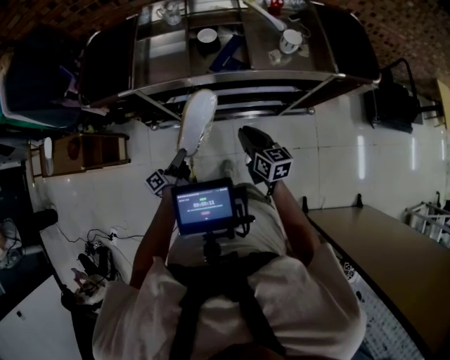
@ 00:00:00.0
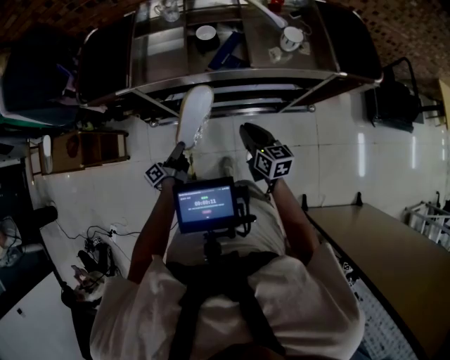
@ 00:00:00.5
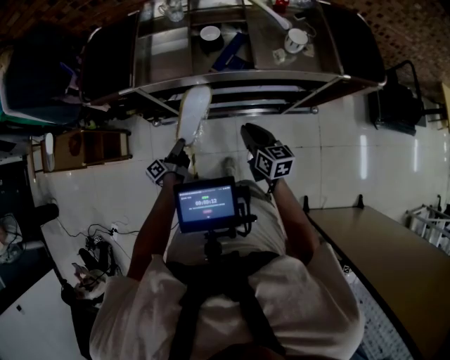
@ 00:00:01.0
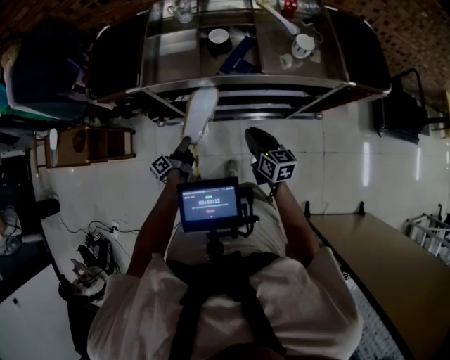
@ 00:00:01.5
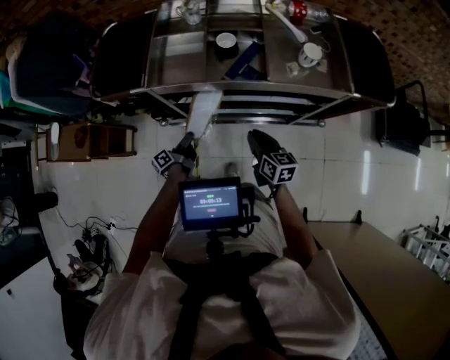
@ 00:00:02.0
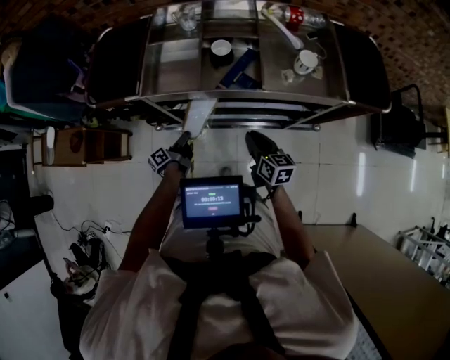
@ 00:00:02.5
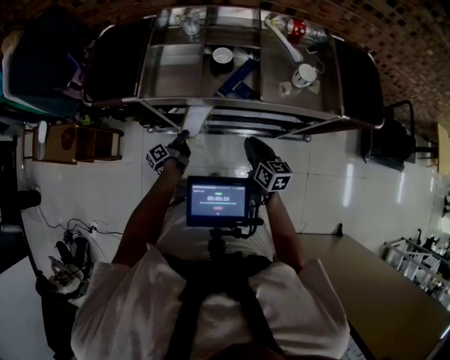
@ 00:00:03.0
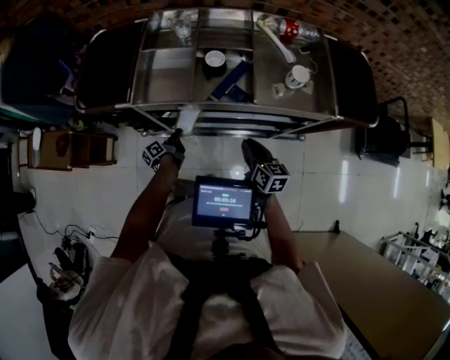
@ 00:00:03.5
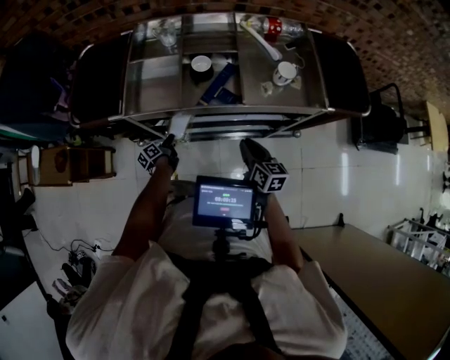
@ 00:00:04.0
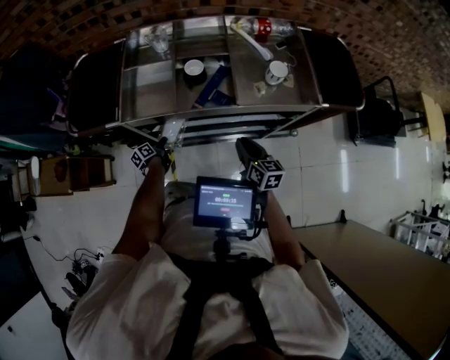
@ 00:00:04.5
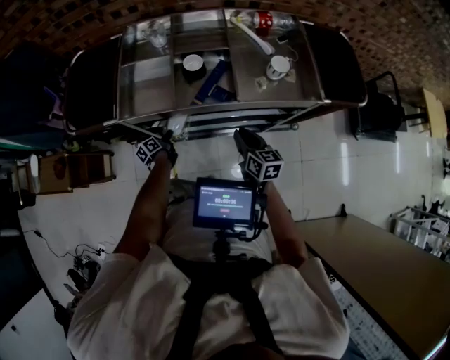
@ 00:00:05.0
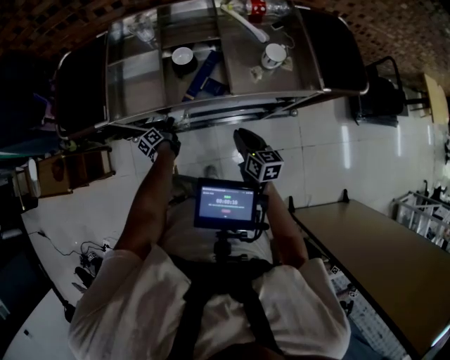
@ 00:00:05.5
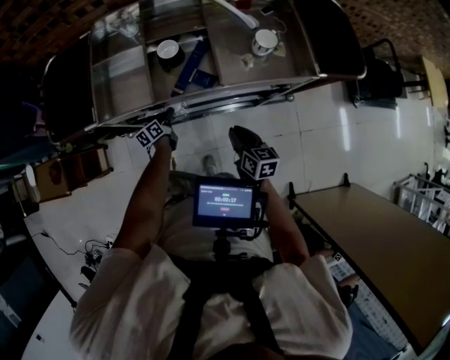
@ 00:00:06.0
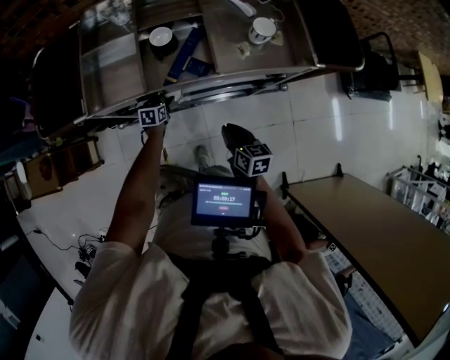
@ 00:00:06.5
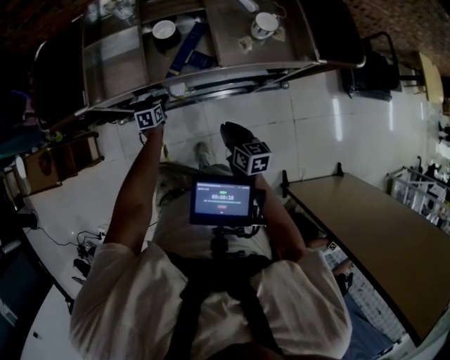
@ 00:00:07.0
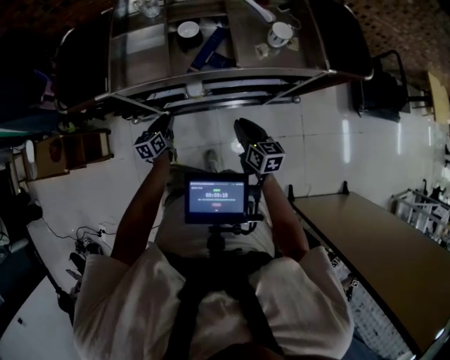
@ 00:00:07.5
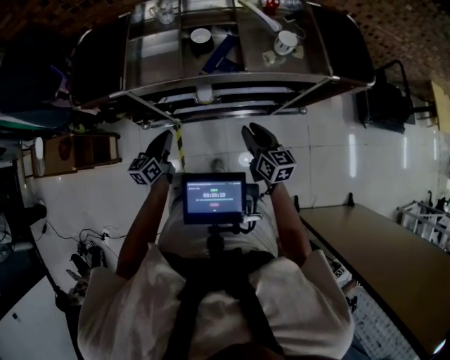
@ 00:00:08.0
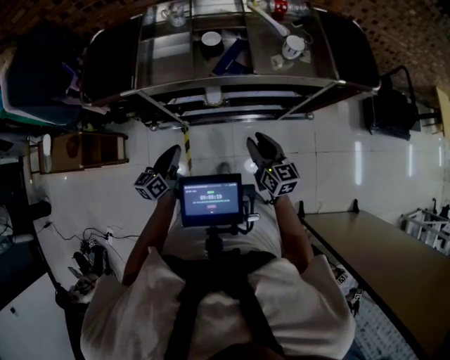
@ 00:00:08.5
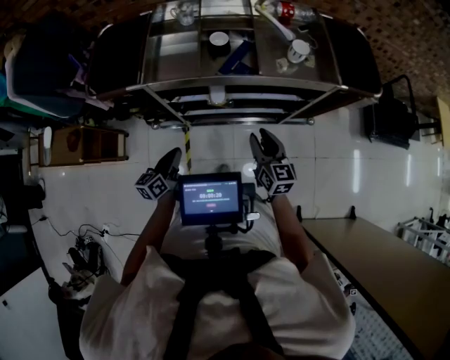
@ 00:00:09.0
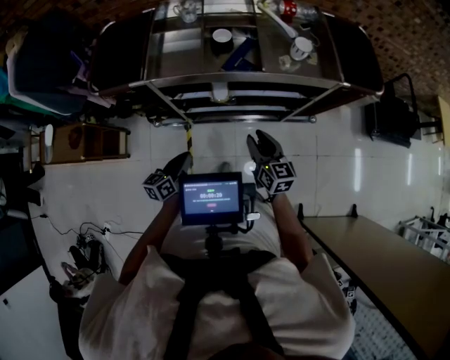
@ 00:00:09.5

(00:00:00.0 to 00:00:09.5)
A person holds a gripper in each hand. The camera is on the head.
00:00:02.0 - 00:00:04.0: The right gripper moves roughly 10 cm.
00:00:05.5 - 00:00:07.5: The right gripper ends up approximately 5 cm from where it was.
00:00:07.5 - 00:00:09.5: The right gripper moves upward, approximately 5 cm.

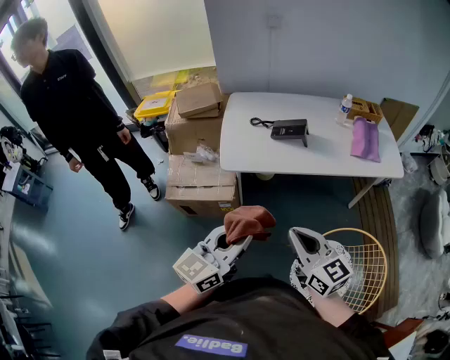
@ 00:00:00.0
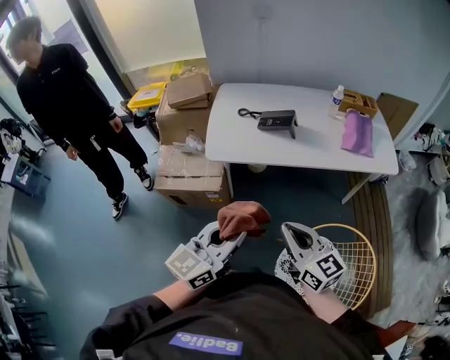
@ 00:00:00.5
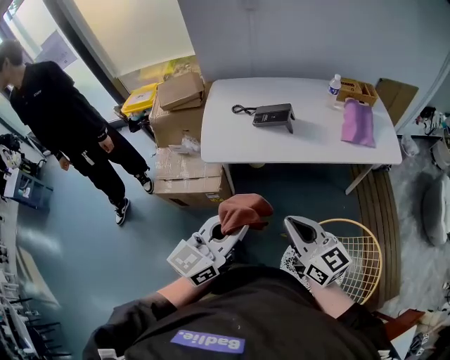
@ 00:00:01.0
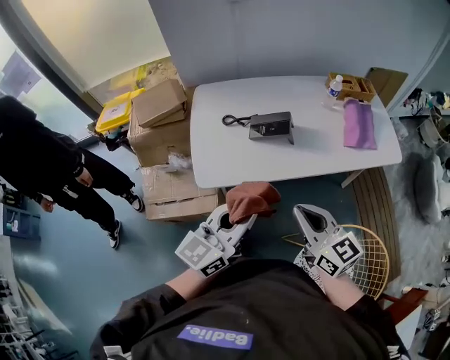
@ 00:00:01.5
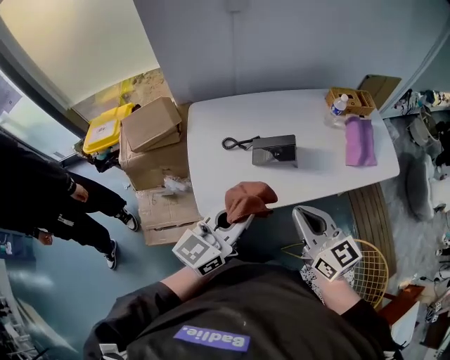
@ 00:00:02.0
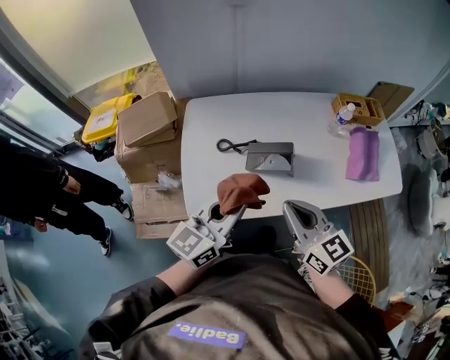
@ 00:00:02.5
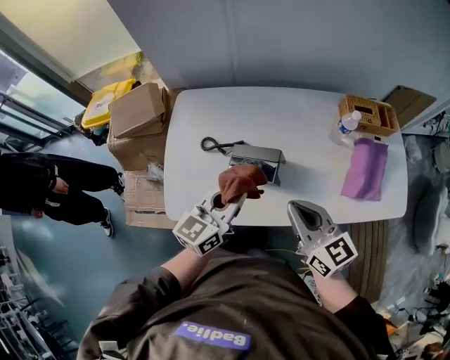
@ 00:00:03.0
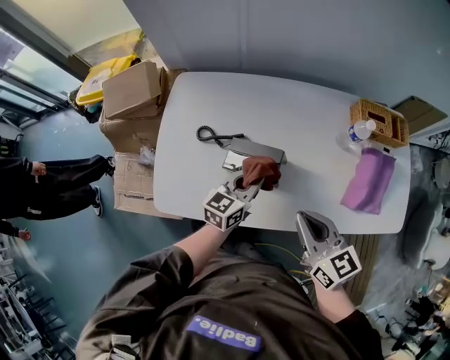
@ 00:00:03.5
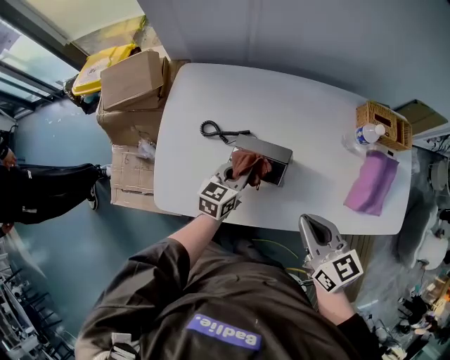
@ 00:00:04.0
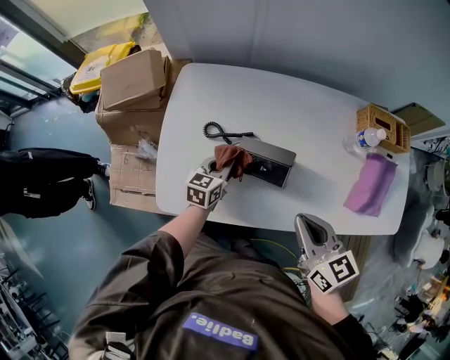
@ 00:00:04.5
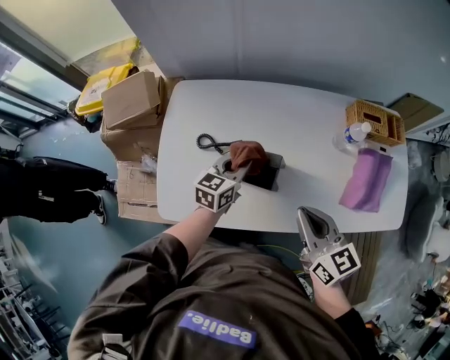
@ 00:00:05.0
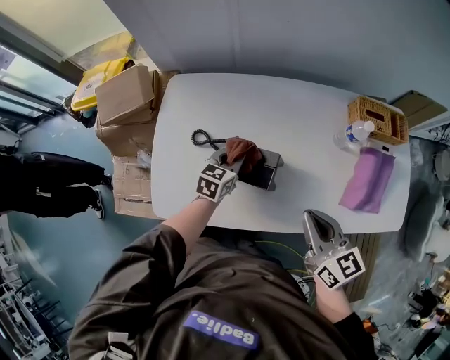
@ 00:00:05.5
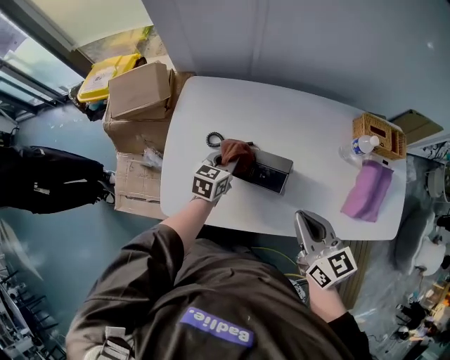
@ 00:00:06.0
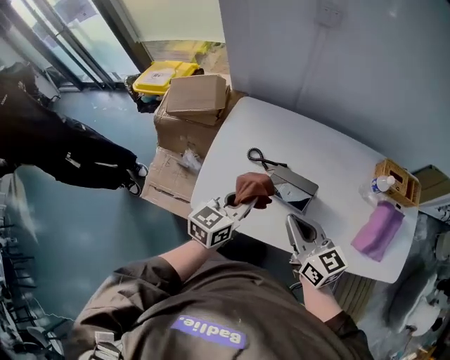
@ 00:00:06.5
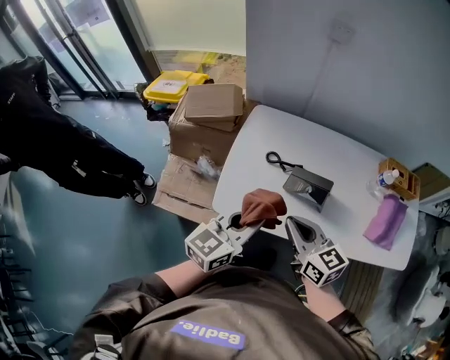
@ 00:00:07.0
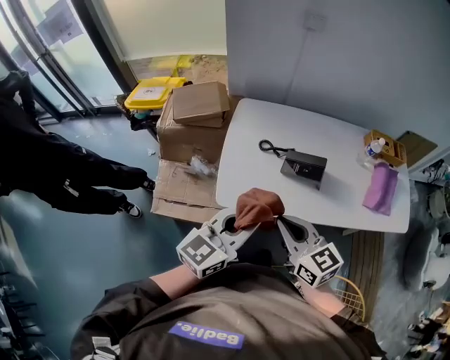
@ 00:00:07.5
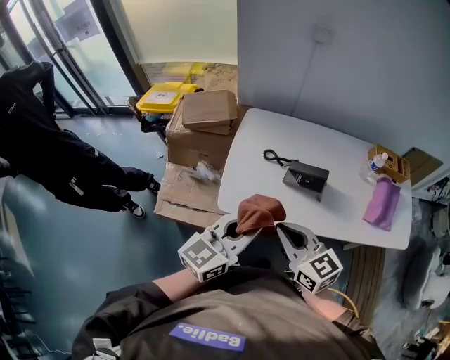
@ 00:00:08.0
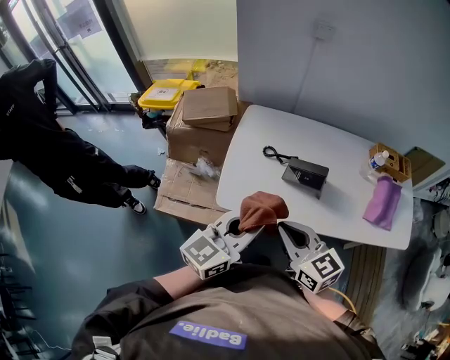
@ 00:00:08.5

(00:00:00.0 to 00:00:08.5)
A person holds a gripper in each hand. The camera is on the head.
00:00:00.0 - 00:00:02.0: The grippers both shift forward by some 30 cm.
00:00:02.0 - 00:00:04.0: The left gripper heads downward, forward and to the right, covering roughly 40 cm, and turns by some 30 degrees. Meanwhile the right gripper goes about 25 cm to the right, forward and downward.
00:00:04.0 - 00:00:06.5: The right gripper travels to the left by approximately 10 cm; the left gripper goes up and down, about 20 cm each way, reversing 2 times.
00:00:06.5 - 00:00:08.5: The right gripper moves backward and to the left, approximately 20 cm, while the left gripper shifts about 20 cm backward and upward.

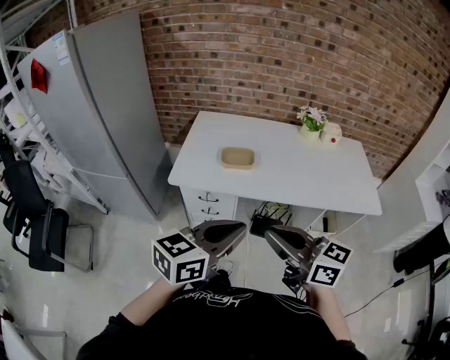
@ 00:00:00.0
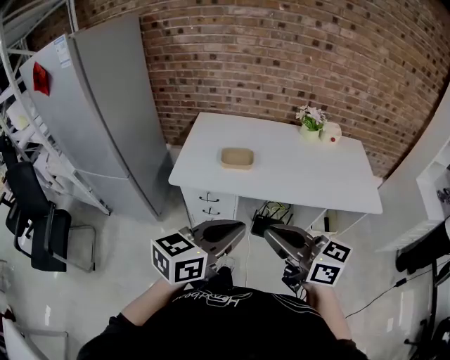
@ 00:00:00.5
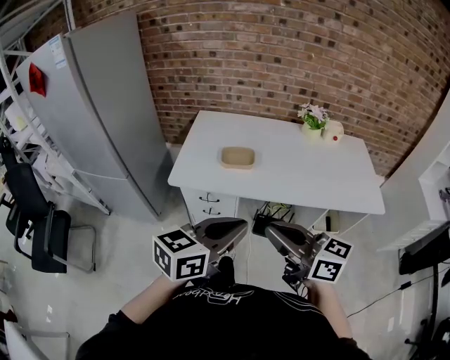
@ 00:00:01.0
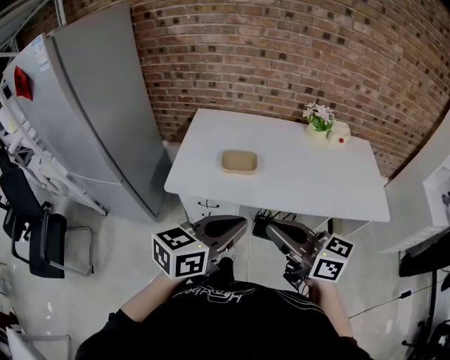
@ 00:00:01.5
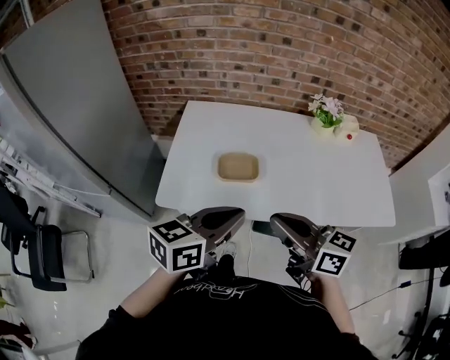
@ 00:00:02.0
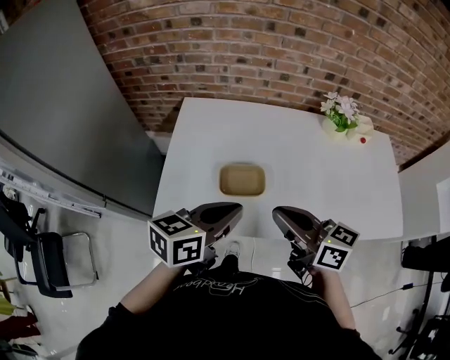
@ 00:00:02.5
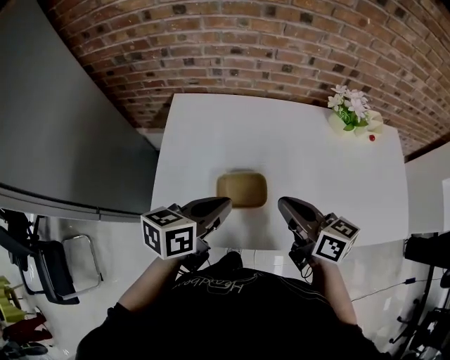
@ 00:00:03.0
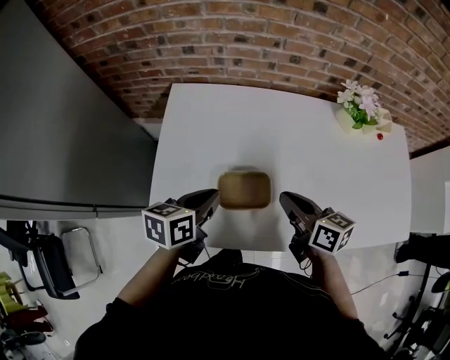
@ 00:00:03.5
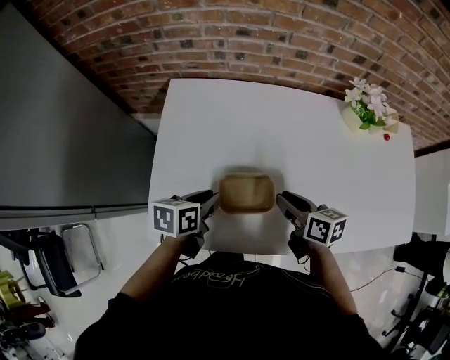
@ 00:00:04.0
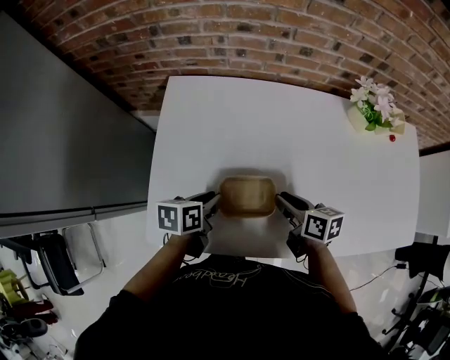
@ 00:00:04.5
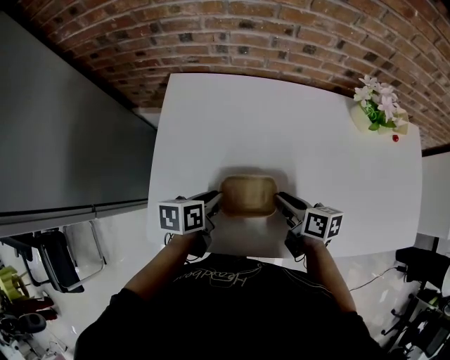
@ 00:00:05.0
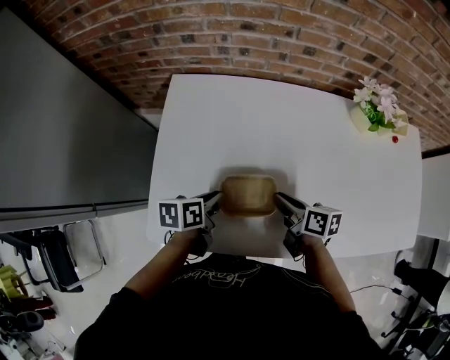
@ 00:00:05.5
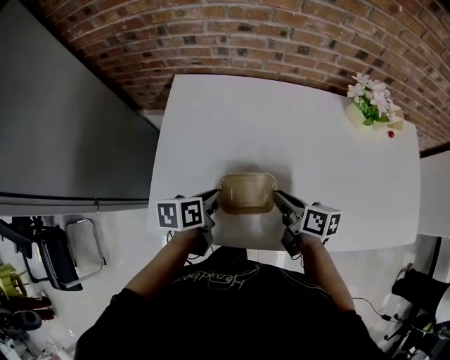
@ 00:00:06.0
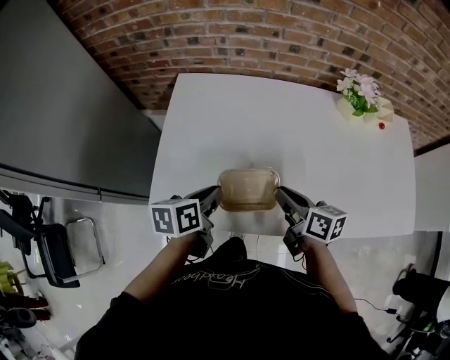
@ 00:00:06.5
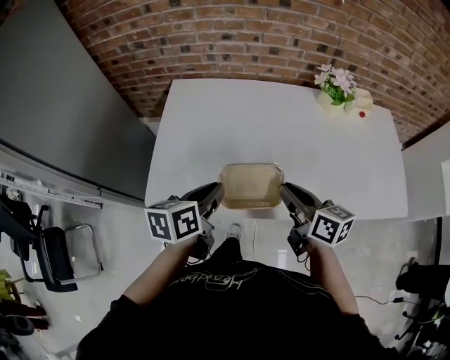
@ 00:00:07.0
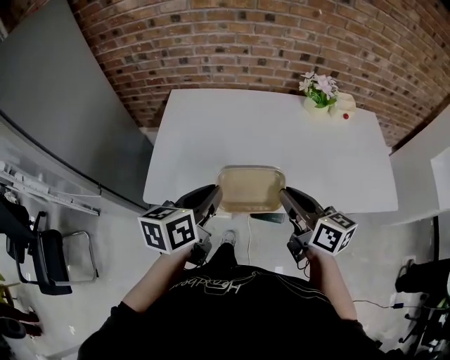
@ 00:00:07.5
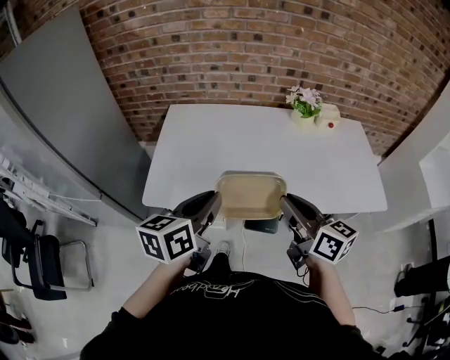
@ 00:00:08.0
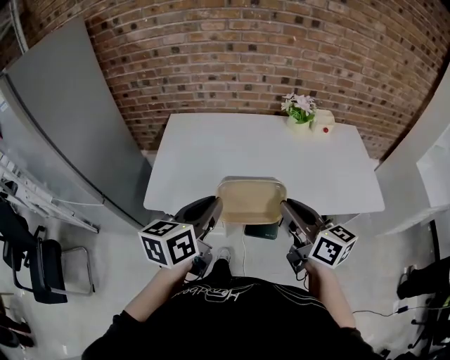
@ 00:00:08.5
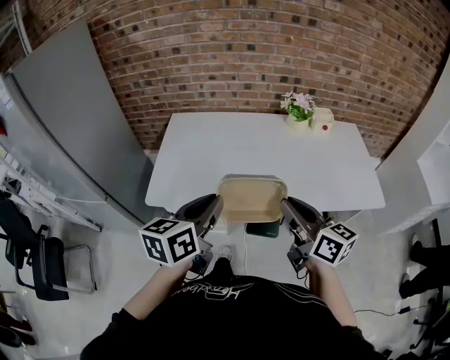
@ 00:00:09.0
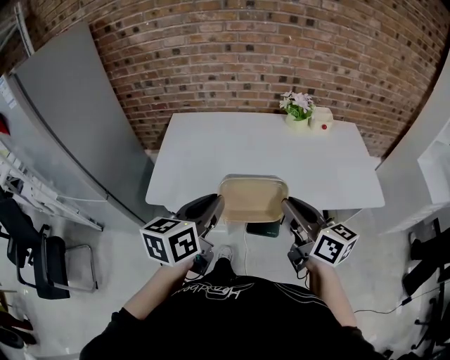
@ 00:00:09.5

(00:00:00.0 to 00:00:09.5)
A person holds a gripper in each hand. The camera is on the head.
00:00:00.0 - 00:00:02.0: Both grippers move forward, some 20 cm.
00:00:02.0 - 00:00:04.0: The right gripper goes about 35 cm forward and downward, turns by about 30 degrees, and opens. The left gripper is displaced downward, forward and to the left by some 35 cm, and angles its fingers downward, by roughly 30 degrees.
00:00:04.0 - 00:00:05.5: The right gripper ends up about 5 cm from where it was.
00:00:05.5 - 00:00:07.5: The two grippers go roughly 30 cm upward and backward. The left gripper changes its angle by some 30 degrees; the right gripper swivels approximately 30 degrees.
00:00:07.5 - 00:00:09.5: The two grippers go roughly 15 cm backward and upward.
